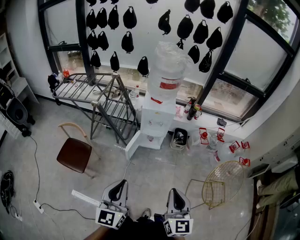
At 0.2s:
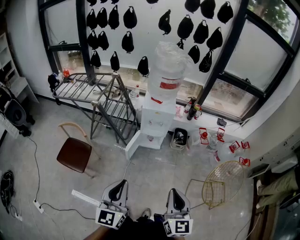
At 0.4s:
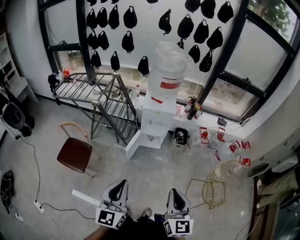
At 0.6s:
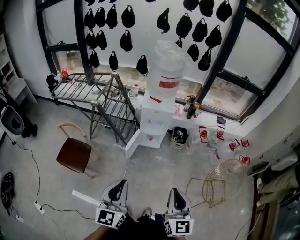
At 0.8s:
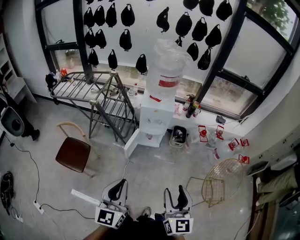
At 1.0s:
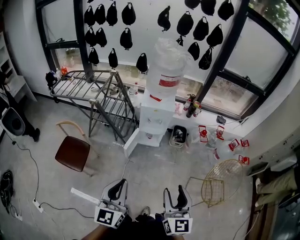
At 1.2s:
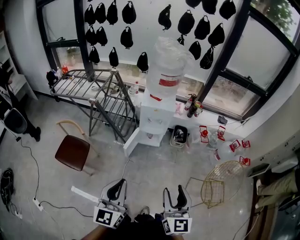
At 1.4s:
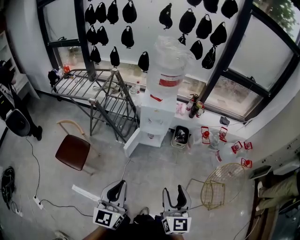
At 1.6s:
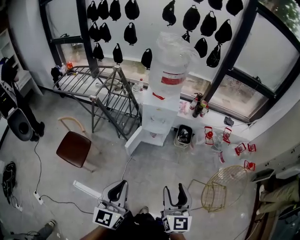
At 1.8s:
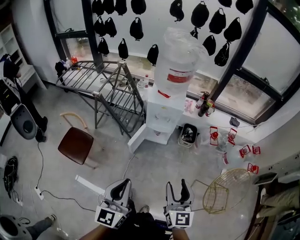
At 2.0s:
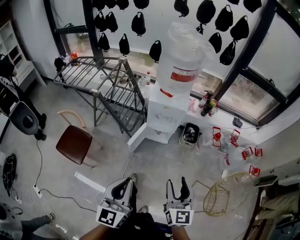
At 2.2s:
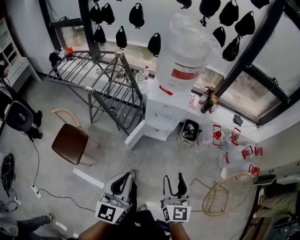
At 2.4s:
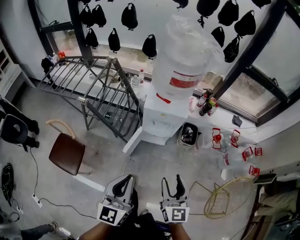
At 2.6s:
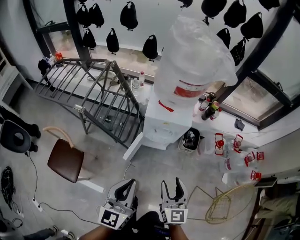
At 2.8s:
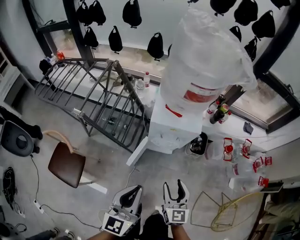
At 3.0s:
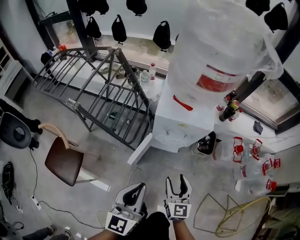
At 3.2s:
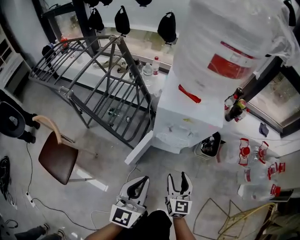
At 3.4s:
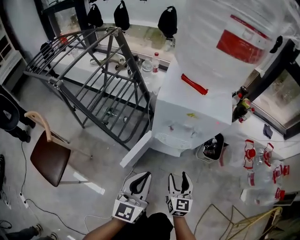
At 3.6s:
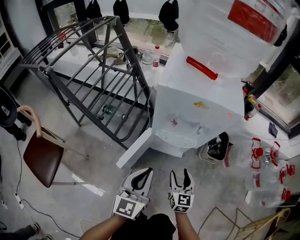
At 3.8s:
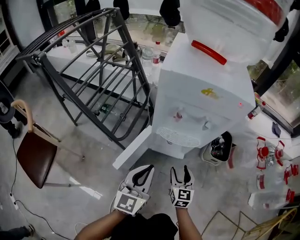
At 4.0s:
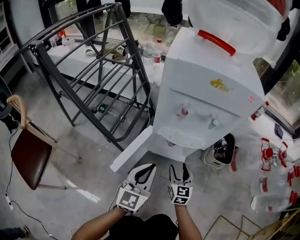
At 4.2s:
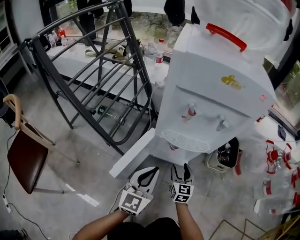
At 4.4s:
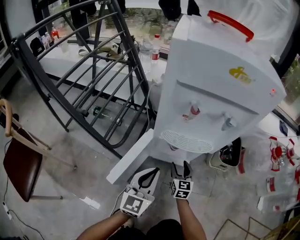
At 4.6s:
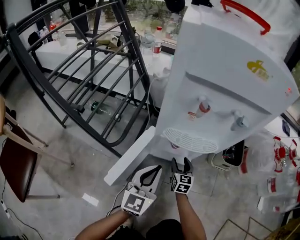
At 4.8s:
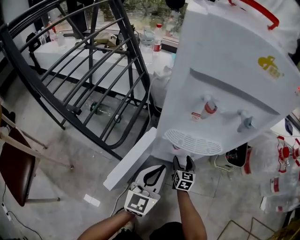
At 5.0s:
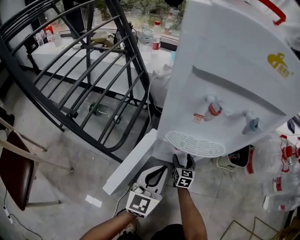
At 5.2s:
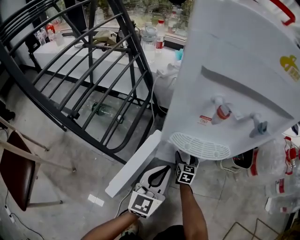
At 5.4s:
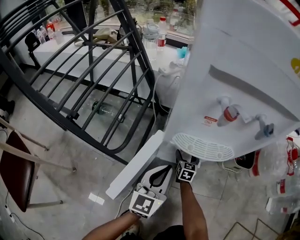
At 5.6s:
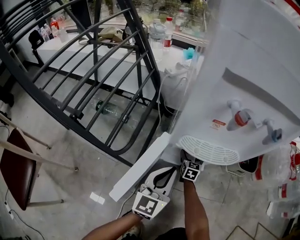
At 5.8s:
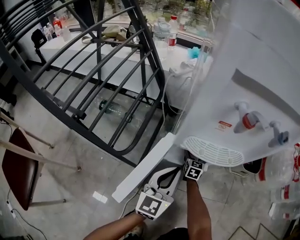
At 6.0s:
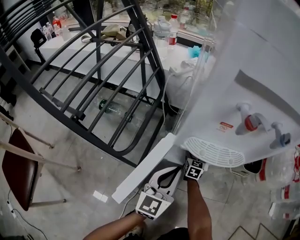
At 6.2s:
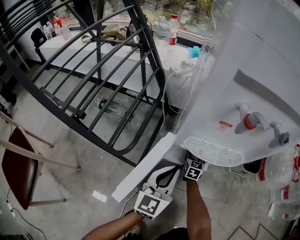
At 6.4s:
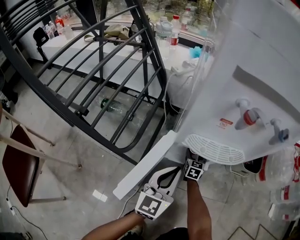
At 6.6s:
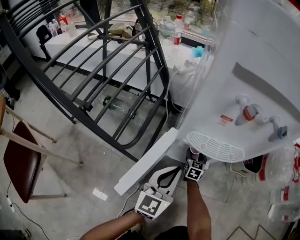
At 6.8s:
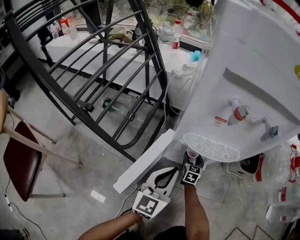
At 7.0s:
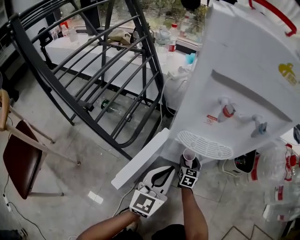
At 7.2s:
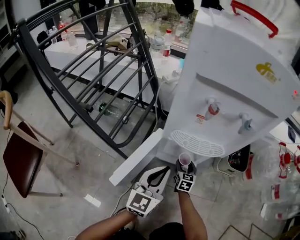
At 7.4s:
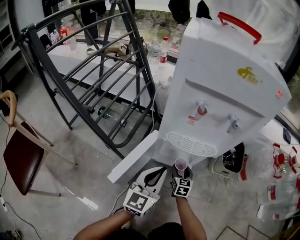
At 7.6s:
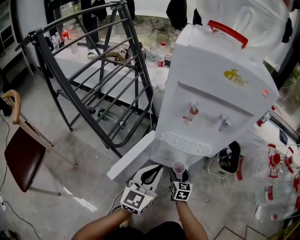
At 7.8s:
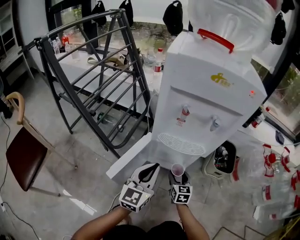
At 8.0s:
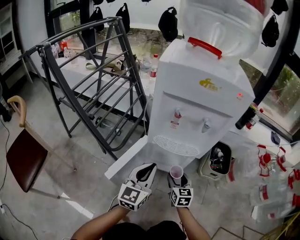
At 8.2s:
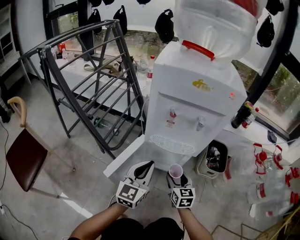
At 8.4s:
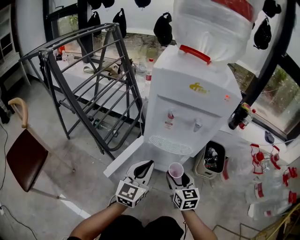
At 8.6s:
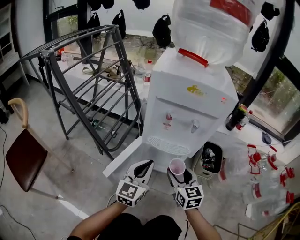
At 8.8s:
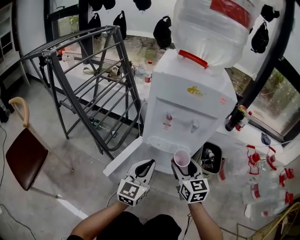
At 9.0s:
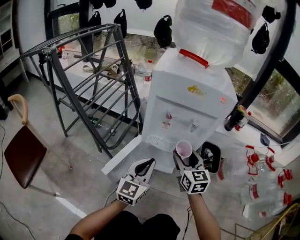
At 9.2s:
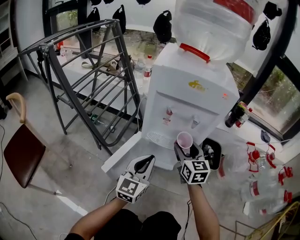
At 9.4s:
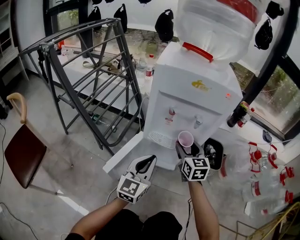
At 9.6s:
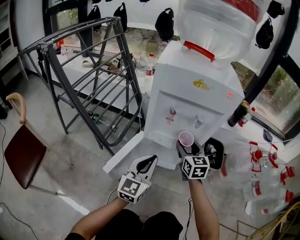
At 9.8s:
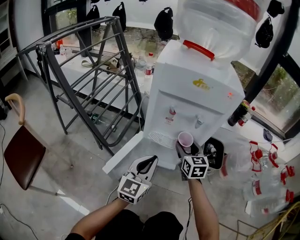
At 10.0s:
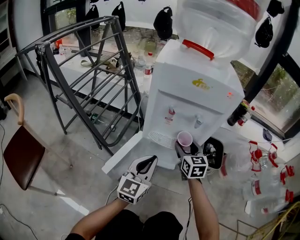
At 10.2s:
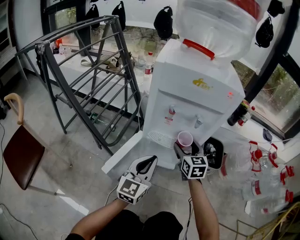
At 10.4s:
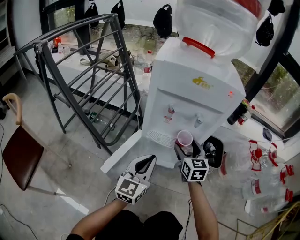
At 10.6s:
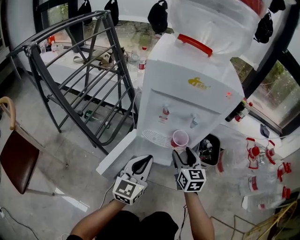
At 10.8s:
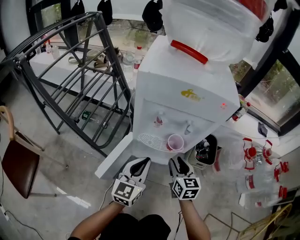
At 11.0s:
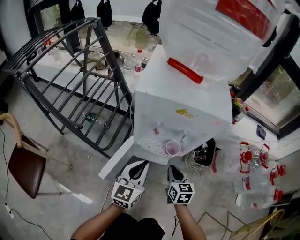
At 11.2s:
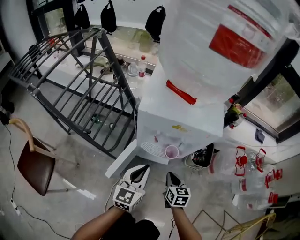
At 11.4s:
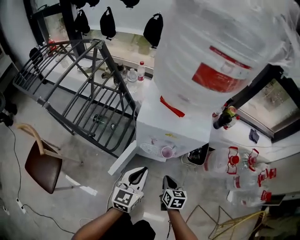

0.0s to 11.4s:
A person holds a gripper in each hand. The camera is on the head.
0.0s to 1.4s: The right gripper shifts by approximately 5 cm, and opens.
1.4s to 2.8s: Both grippers travel together forward and downward, about 40 cm.
2.8s to 4.2s: Both grippers travel together downward, roughly 60 cm.
4.2s to 5.6s: The left gripper shifts roughly 15 cm downward and forward. The right gripper travels downward and forward by roughly 25 cm.
5.6s to 7.2s: The left gripper moves about 5 cm; the right gripper travels backward by about 10 cm.
7.2s to 8.6s: The right gripper goes some 35 cm upward and backward, and rotates roughly 20 degrees. The left gripper travels upward by some 10 cm.
8.6s to 10.0s: The right gripper heads forward, covering about 10 cm.
10.0s to 11.4s: The left gripper travels upward by approximately 20 cm, while the right gripper heads backward and upward, covering about 15 cm, turns by about 30 degrees, and closes.

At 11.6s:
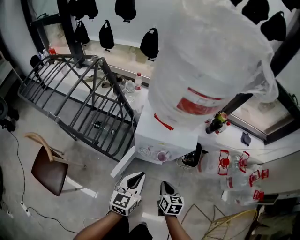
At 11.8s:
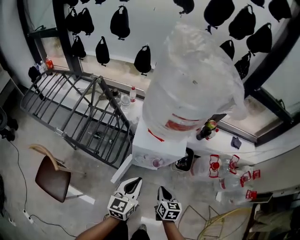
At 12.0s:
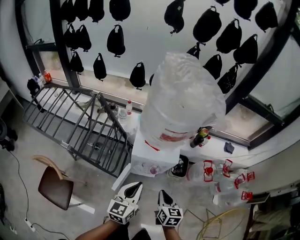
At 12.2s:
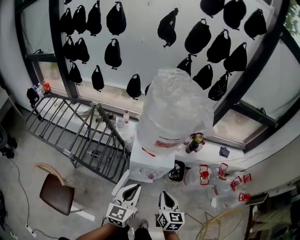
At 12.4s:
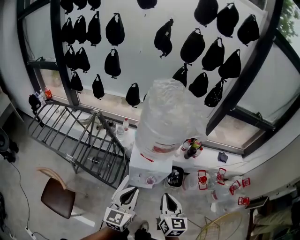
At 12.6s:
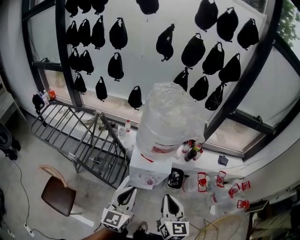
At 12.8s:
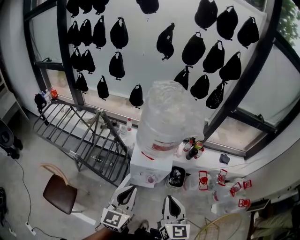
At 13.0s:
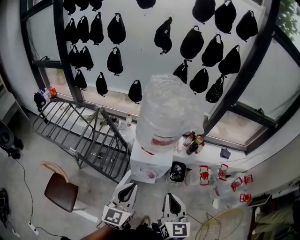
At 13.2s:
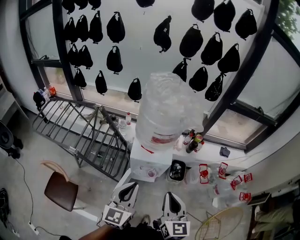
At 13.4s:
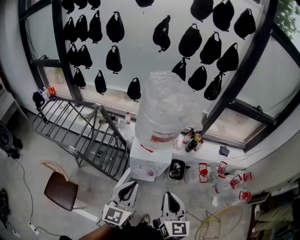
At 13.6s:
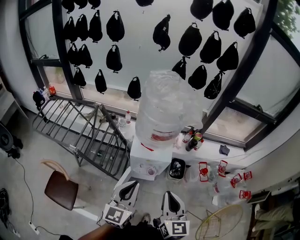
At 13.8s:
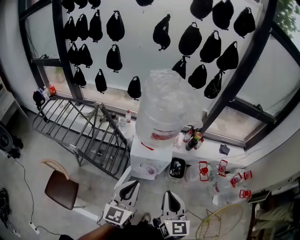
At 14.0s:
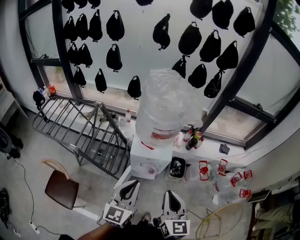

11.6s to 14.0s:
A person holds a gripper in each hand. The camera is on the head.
11.6s to 12.8s: The grippers both shift upward by some 40 cm. The right gripper points its fingers about 30 degrees further upward.
12.8s to 14.0s: The grippers make only small movements.

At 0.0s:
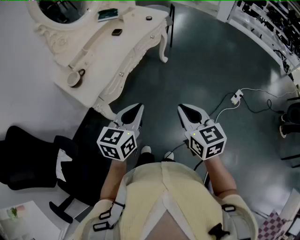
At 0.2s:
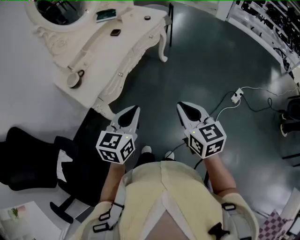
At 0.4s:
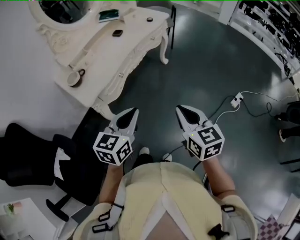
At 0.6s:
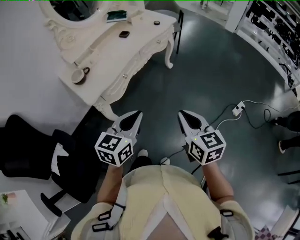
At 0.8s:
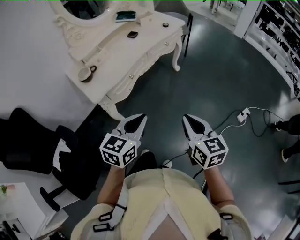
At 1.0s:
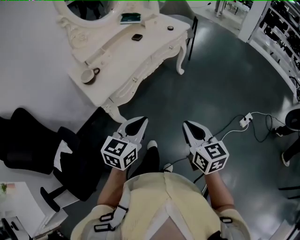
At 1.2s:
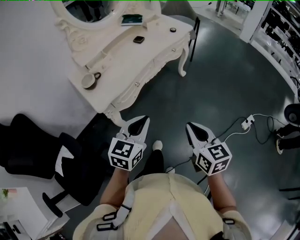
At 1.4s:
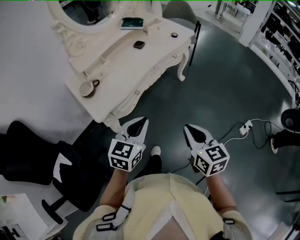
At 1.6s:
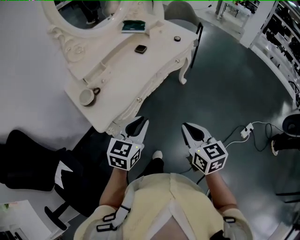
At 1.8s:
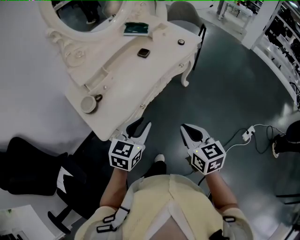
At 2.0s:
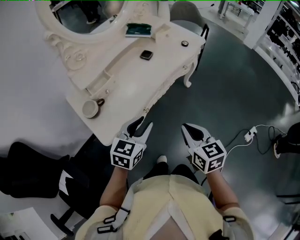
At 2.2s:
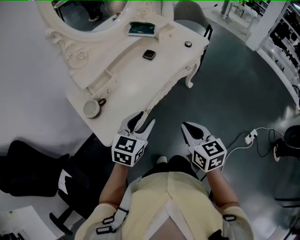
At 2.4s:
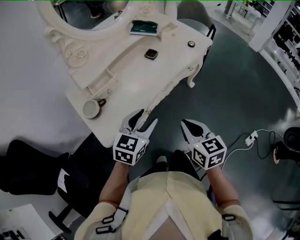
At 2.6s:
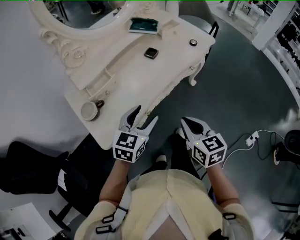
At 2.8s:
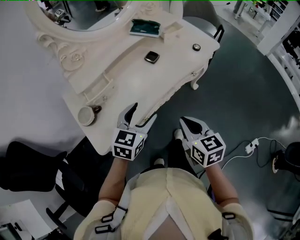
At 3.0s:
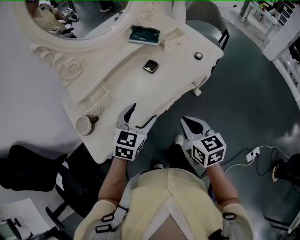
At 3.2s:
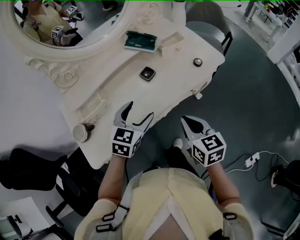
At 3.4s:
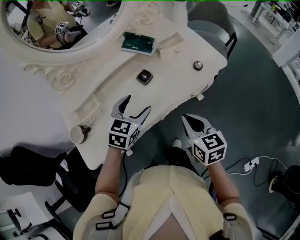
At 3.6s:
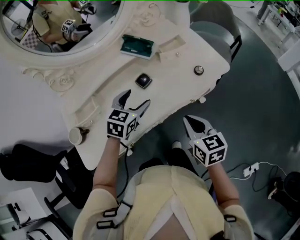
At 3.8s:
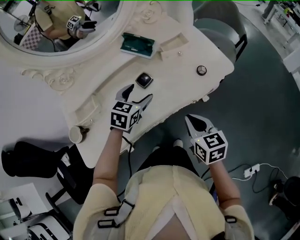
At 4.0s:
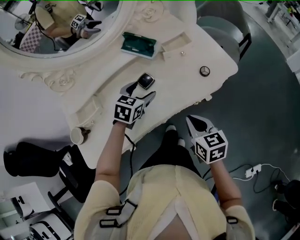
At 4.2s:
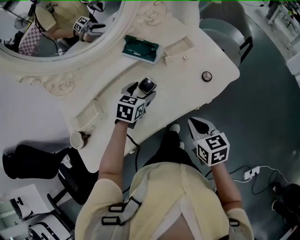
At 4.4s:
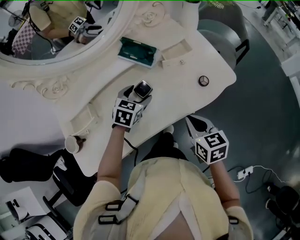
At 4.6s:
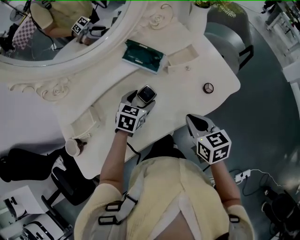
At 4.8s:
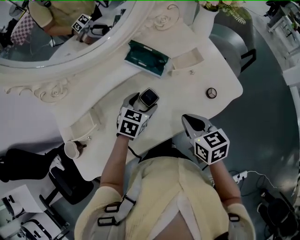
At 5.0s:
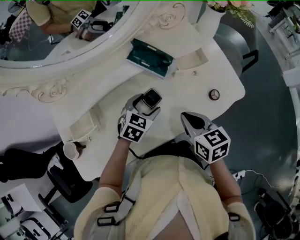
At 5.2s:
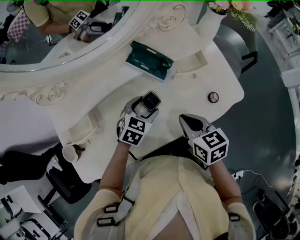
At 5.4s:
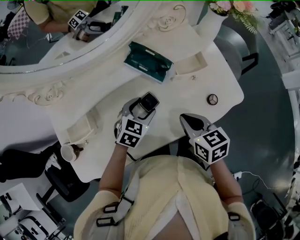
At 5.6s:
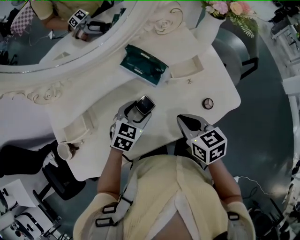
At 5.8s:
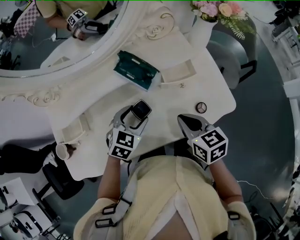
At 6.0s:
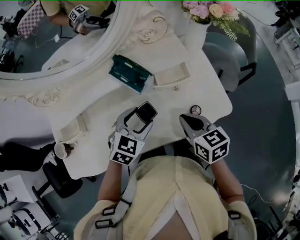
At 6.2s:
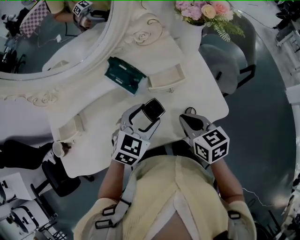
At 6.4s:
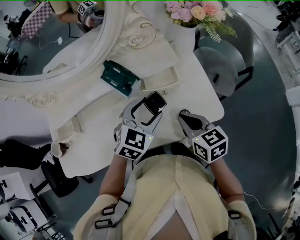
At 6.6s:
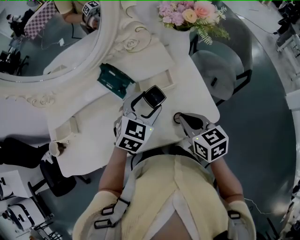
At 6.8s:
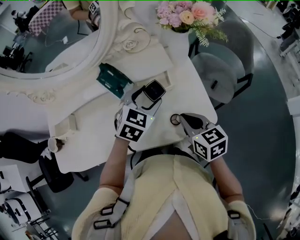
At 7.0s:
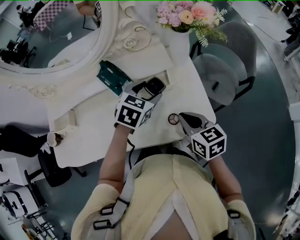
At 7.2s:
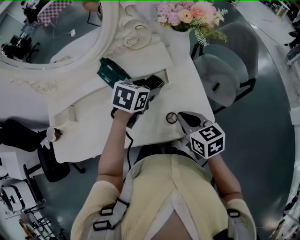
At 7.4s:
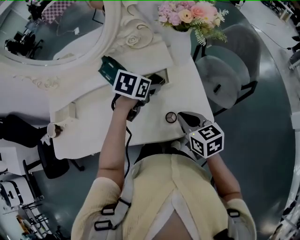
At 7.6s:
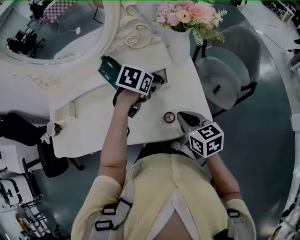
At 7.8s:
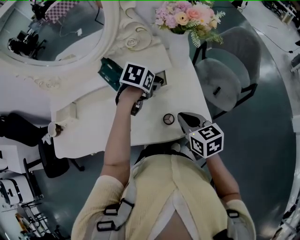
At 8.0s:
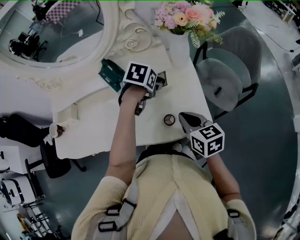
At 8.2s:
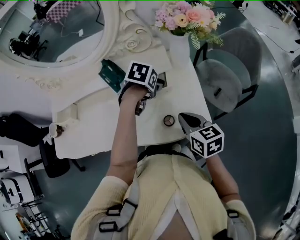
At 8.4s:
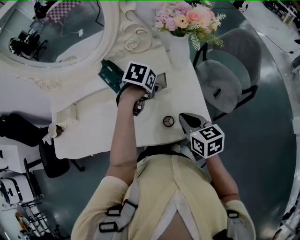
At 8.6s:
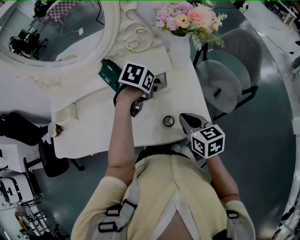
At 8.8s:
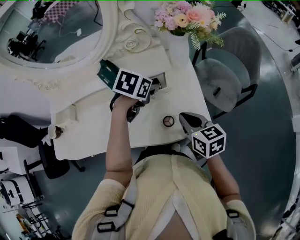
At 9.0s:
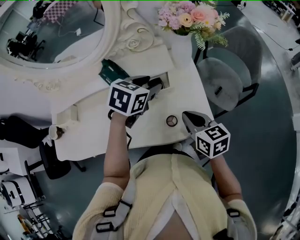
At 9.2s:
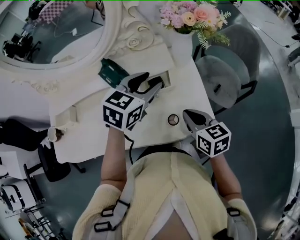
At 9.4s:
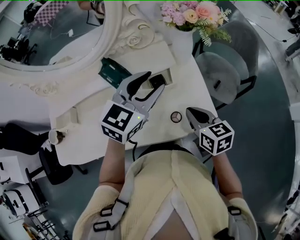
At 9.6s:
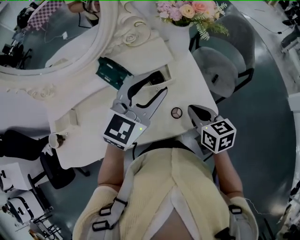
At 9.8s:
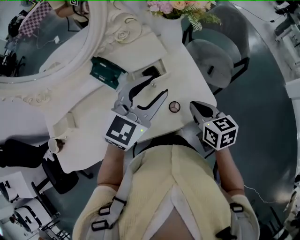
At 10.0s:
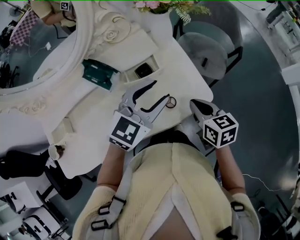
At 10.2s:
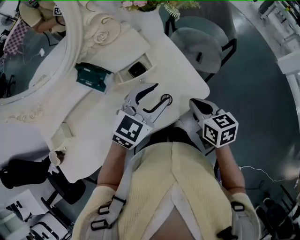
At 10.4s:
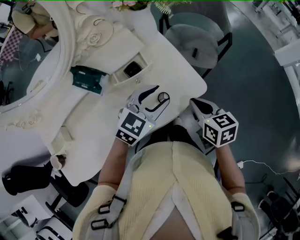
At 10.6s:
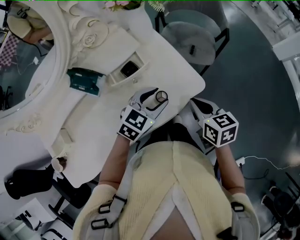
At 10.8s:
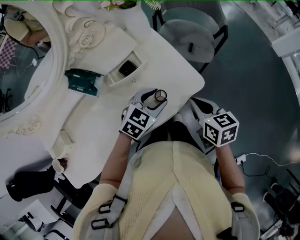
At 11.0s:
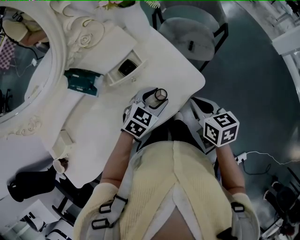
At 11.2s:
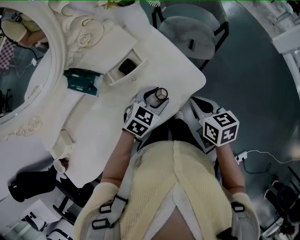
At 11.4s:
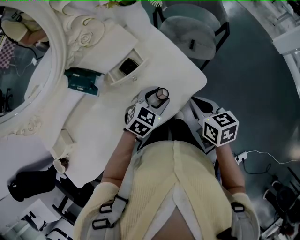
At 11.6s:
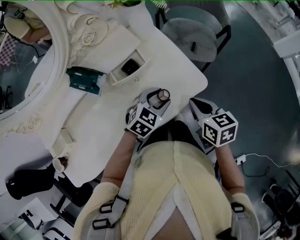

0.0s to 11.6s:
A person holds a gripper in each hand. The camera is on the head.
0.0s to 1.4s: Both grippers travel together forward, approximately 10 cm.
1.4s to 2.8s: Both grippers move forward, approximately 25 cm. The left gripper opens.
2.8s to 4.4s: The right gripper travels forward and to the right by some 30 cm; the left gripper shifts approximately 30 cm forward, and swivels some 20 degrees.
4.4s to 5.8s: The right gripper moves forward, approximately 10 cm.
5.8s to 7.2s: The right gripper goes some 15 cm to the right, while the left gripper moves to the right and forward, about 20 cm, and rotates roughly 20 degrees.
8.8s to 10.2s: The left gripper is displaced backward, to the right and upward by approximately 15 cm, and angles its fingers upward, by approximately 30 degrees; the right gripper shifts by roughly 5 cm, and turns by some 20 degrees.
10.2s to 11.6s: The left gripper goes roughly 15 cm downward, and turns by about 20 degrees.
